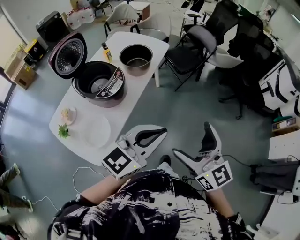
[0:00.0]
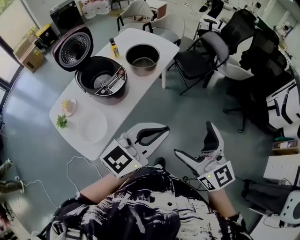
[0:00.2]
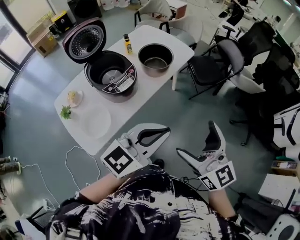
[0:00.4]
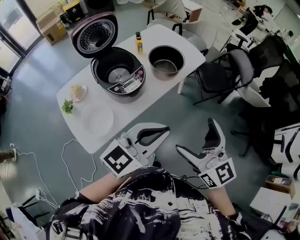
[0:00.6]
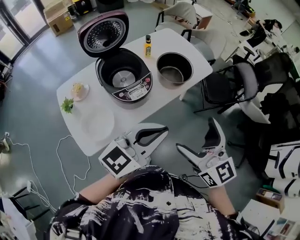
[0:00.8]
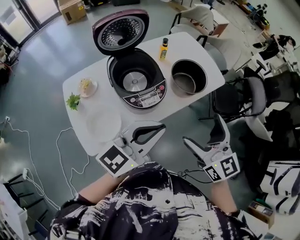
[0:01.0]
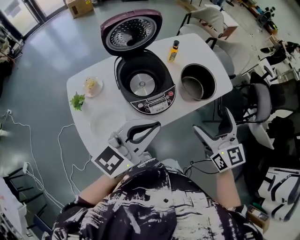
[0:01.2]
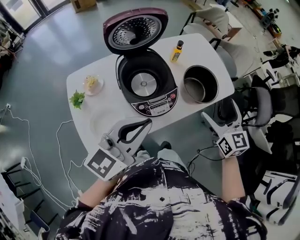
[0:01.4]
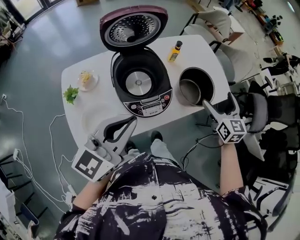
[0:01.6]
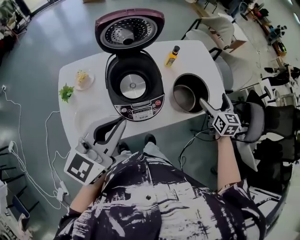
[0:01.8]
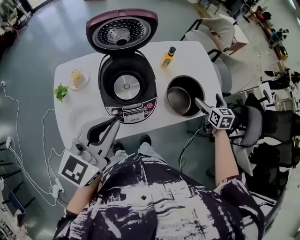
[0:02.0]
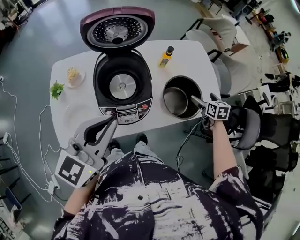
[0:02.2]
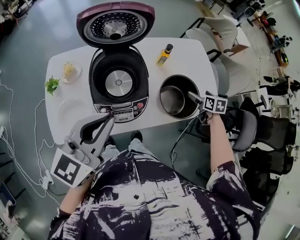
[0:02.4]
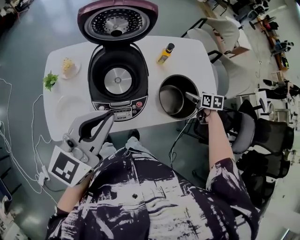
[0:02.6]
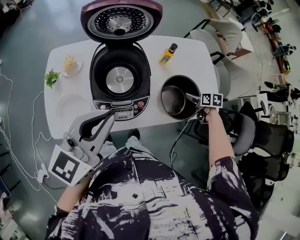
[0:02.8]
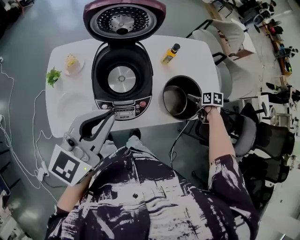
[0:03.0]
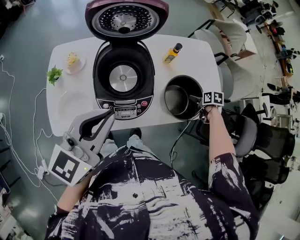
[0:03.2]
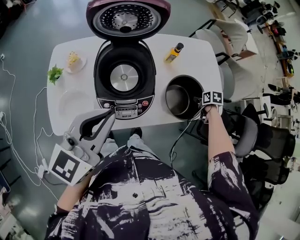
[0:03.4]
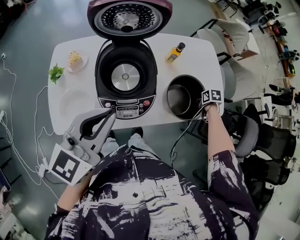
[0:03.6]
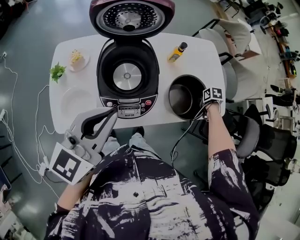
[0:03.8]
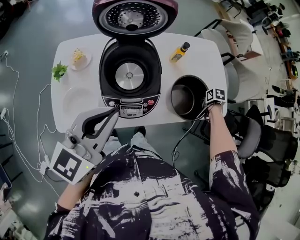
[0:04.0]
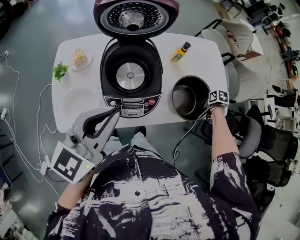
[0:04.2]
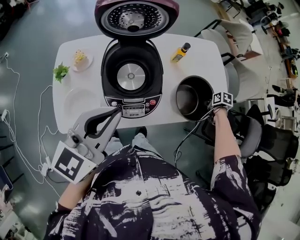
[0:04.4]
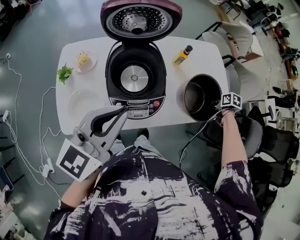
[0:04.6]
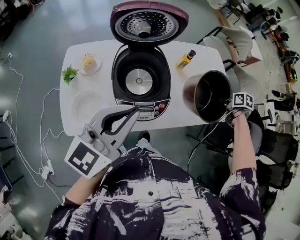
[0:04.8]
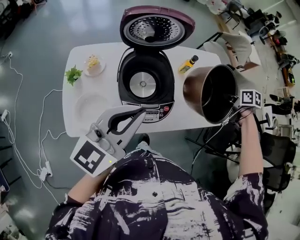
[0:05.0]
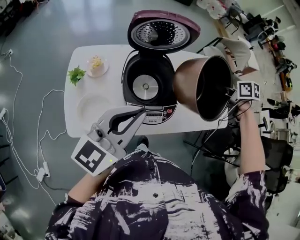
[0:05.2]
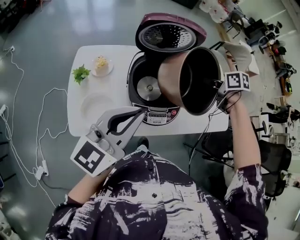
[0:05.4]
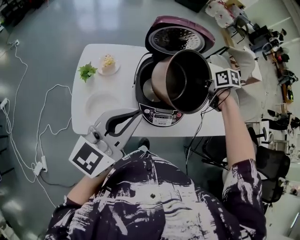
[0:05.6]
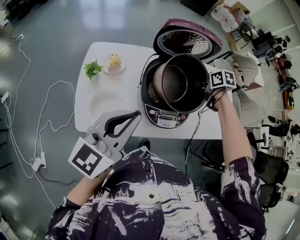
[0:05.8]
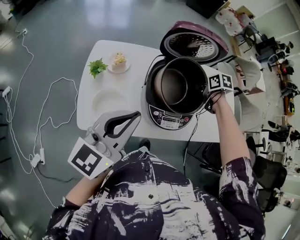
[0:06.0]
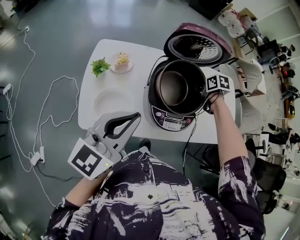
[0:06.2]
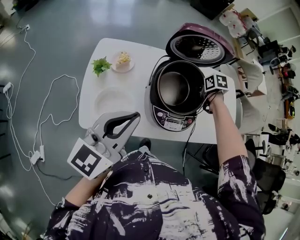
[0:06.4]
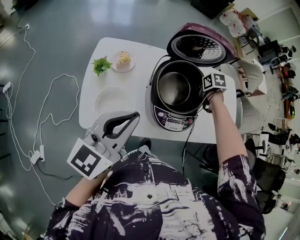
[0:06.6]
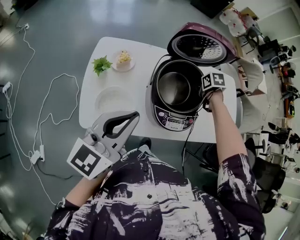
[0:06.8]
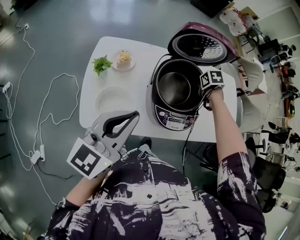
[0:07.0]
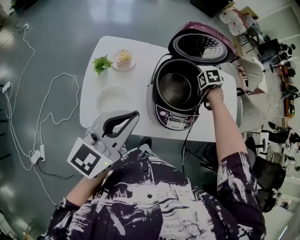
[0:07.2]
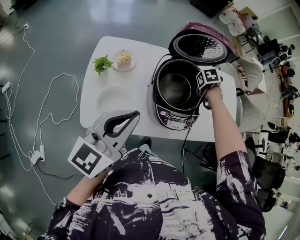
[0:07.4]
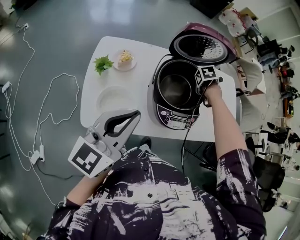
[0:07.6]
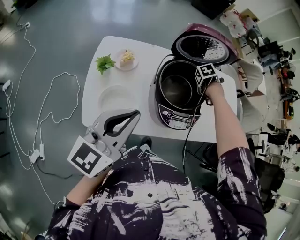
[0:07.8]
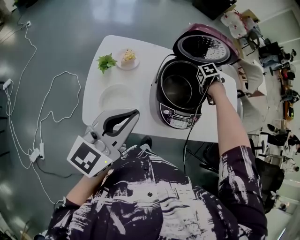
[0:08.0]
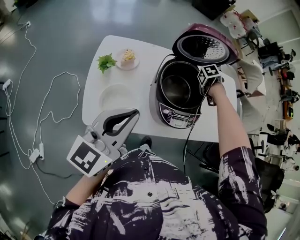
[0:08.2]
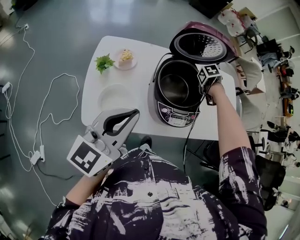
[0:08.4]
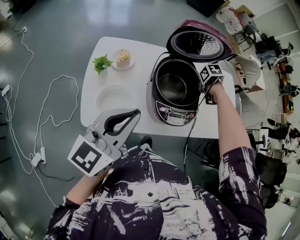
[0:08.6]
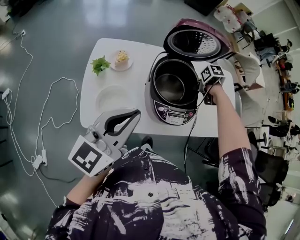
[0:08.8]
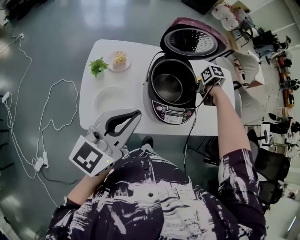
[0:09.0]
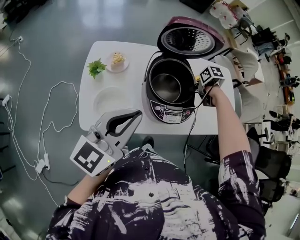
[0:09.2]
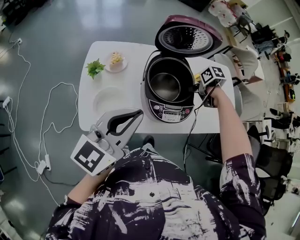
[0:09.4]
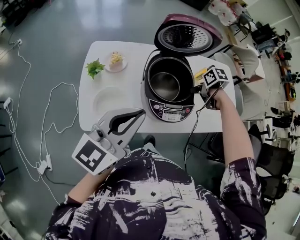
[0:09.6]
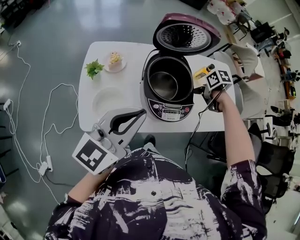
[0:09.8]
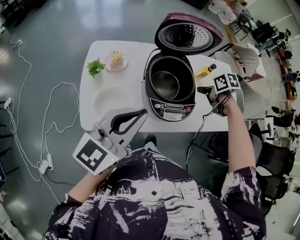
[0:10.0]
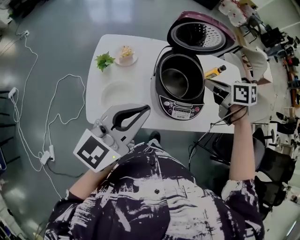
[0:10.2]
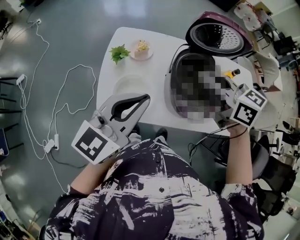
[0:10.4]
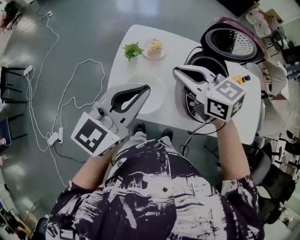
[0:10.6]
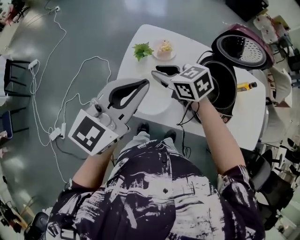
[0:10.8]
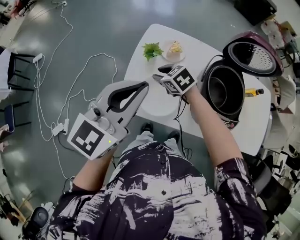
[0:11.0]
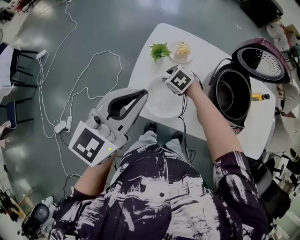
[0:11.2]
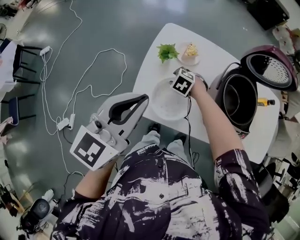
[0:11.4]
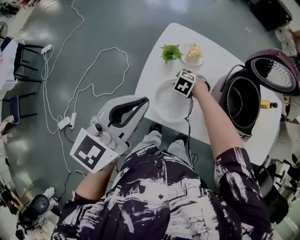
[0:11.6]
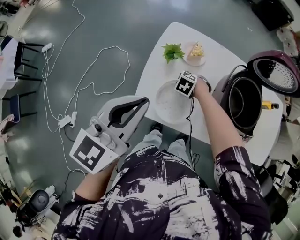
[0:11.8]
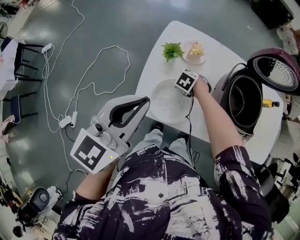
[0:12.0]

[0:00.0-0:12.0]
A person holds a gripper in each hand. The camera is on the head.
0:00.0 to 0:01.6: The left gripper shifts by roughly 35 cm, and swivels approximately 60 degrees. Meanwhile the right gripper moves roughly 60 cm, and swivels some 30 degrees.
0:01.6 to 0:03.0: The right gripper shifts approximately 30 cm downward and forward, and tilts its fingers about 50 degrees downward, while the left gripper goes some 5 cm forward.
0:03.0 to 0:04.4: The right gripper ends up about 5 cm from where it was, and closes its fingers.
0:04.4 to 0:06.0: The left gripper ends up approximately 15 cm from where it was. Meanwhile the right gripper ends up some 40 cm from where it was, and changes its angle by some 30 degrees.
0:06.0 to 0:07.6: The right gripper swivels some 30 degrees.
0:07.6 to 0:09.0: The right gripper changes place by approximately 5 cm, and turns by some 30 degrees.
0:09.0 to 0:10.4: The right gripper shifts about 25 cm upward, and points its fingers approximately 60 degrees further upward.
0:10.4 to 0:12.0: The right gripper is displaced downward by approximately 40 cm, and tips its fingers downward by approximately 60 degrees. Meanwhile the left gripper ends up roughly 20 cm from where it was.

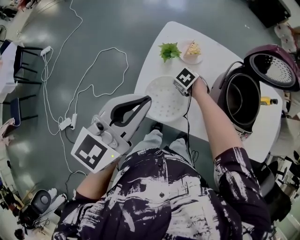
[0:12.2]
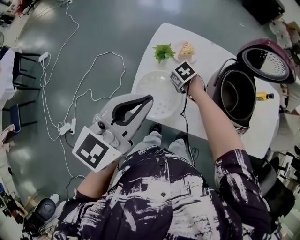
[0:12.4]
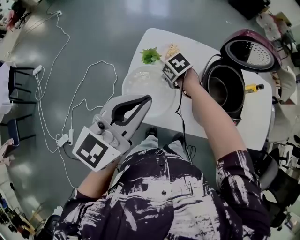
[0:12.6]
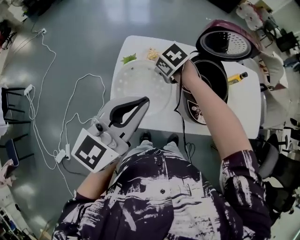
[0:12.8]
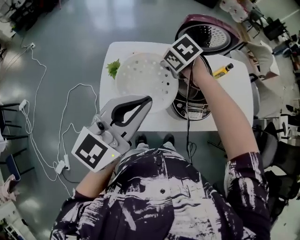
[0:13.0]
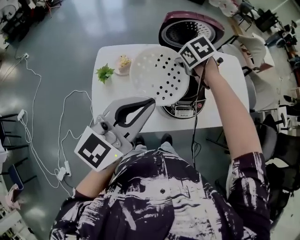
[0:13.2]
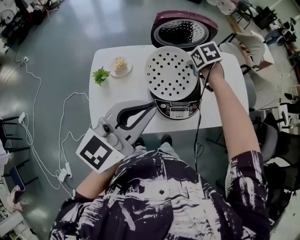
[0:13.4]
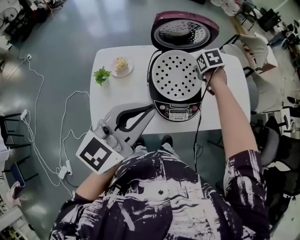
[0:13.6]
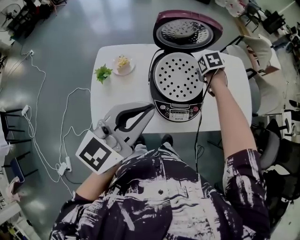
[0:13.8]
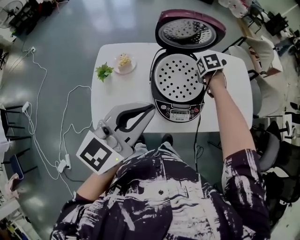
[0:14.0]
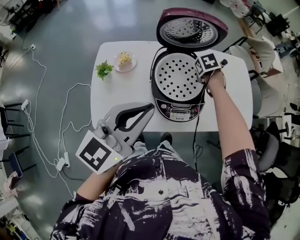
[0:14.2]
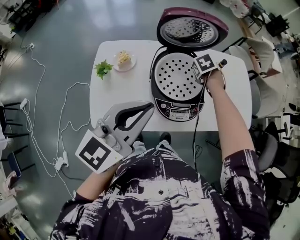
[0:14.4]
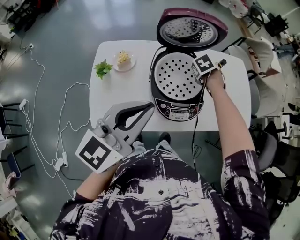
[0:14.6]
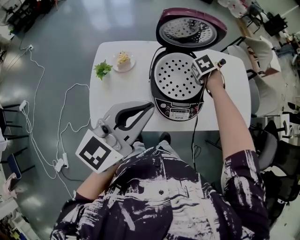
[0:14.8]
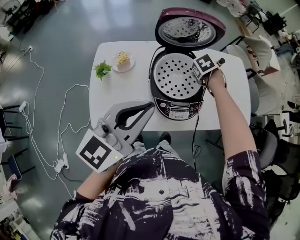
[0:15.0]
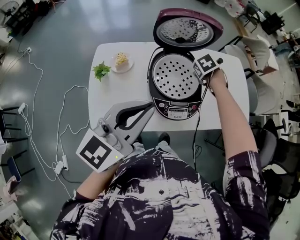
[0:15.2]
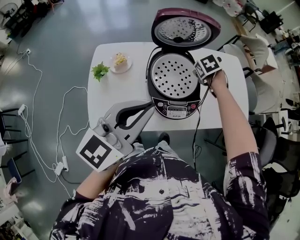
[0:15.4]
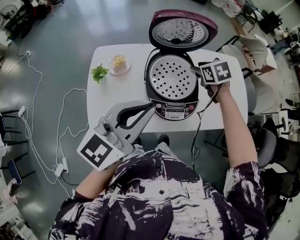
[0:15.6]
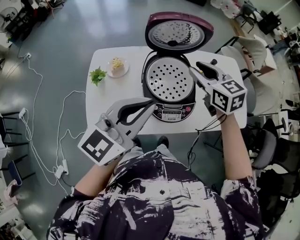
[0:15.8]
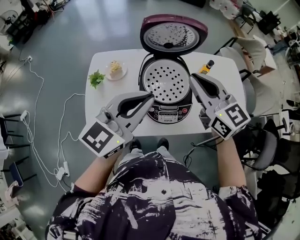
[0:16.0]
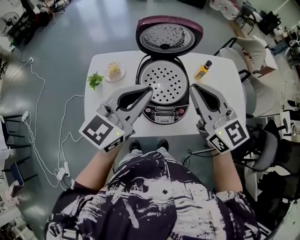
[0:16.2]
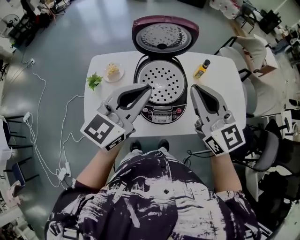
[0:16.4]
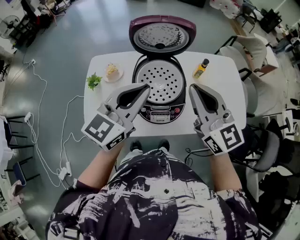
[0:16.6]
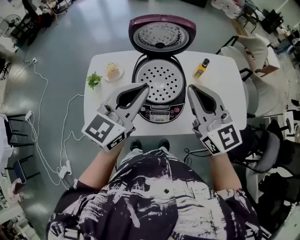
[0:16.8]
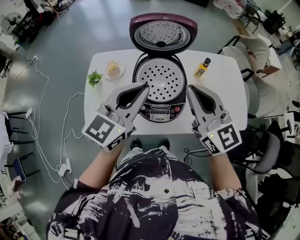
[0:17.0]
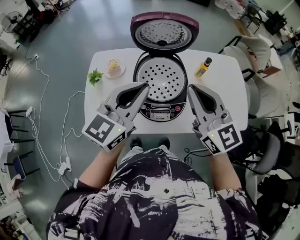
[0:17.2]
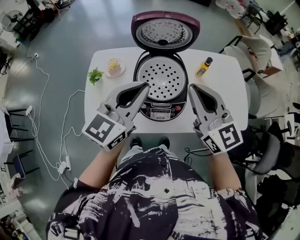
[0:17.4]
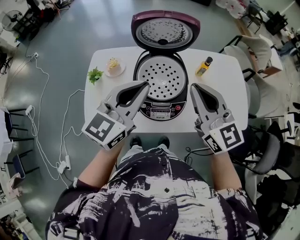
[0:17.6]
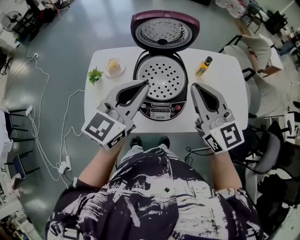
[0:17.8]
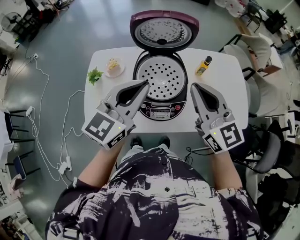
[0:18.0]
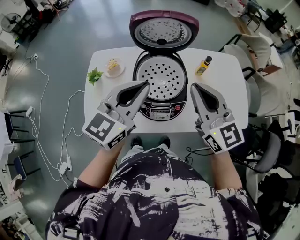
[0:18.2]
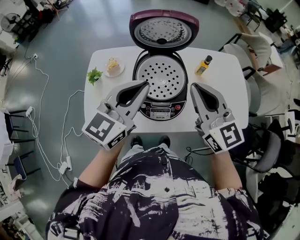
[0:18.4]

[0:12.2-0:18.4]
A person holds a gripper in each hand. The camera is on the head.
0:12.2 to 0:13.8: The right gripper ends up roughly 50 cm from where it was, and rolls clockwise, seen from behind, by roughly 50 degrees, while the left gripper changes place by some 30 cm, and turns by some 30 degrees.
0:13.8 to 0:15.4: The grippers stay close to where they were, moving slightly.
0:15.4 to 0:16.8: The right gripper is displaced upward and backward by some 30 cm, and points its fingers roughly 70 degrees further upward, while the left gripper shifts roughly 10 cm to the right and forward.
0:16.8 to 0:18.4: The grippers make only small movements.

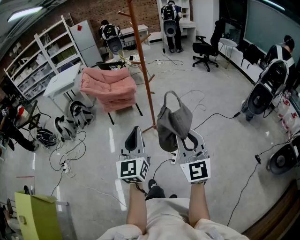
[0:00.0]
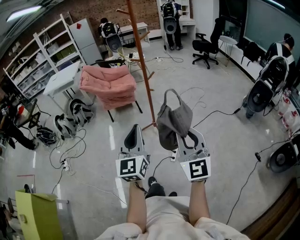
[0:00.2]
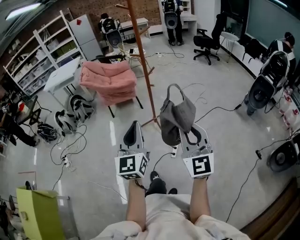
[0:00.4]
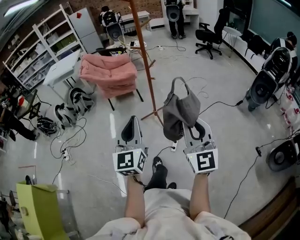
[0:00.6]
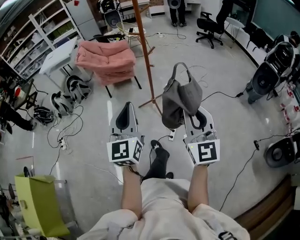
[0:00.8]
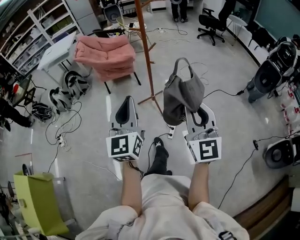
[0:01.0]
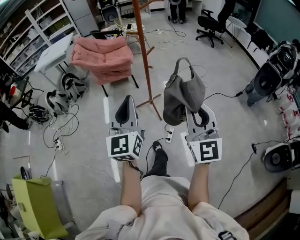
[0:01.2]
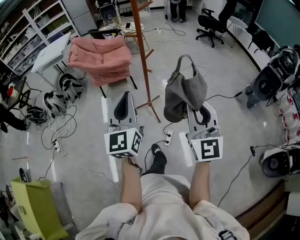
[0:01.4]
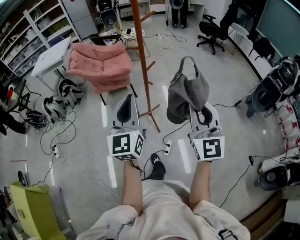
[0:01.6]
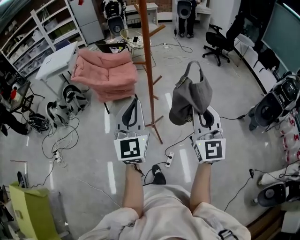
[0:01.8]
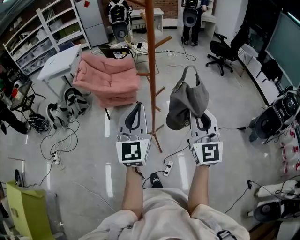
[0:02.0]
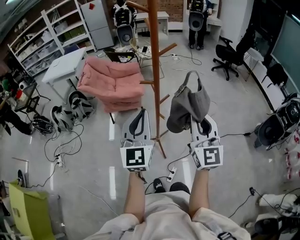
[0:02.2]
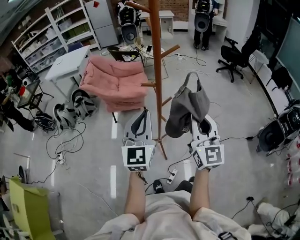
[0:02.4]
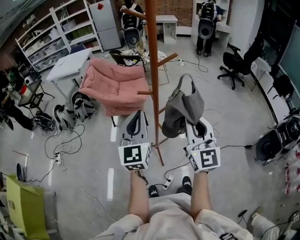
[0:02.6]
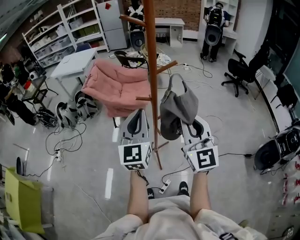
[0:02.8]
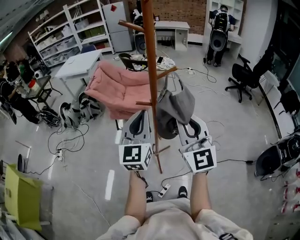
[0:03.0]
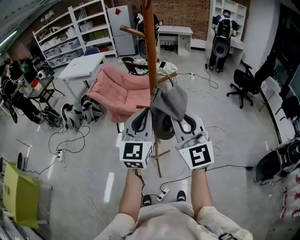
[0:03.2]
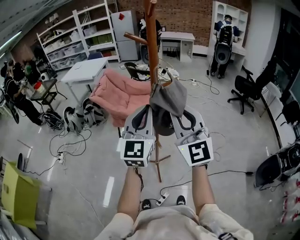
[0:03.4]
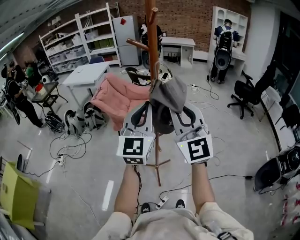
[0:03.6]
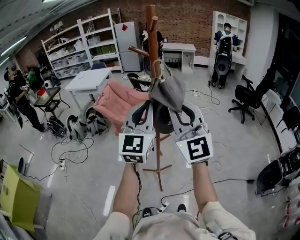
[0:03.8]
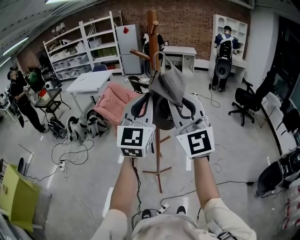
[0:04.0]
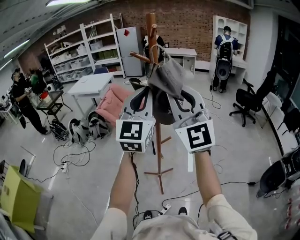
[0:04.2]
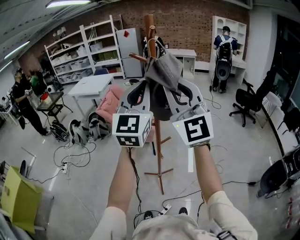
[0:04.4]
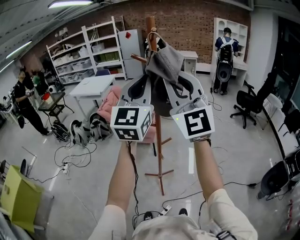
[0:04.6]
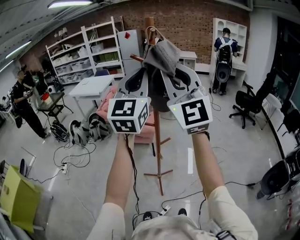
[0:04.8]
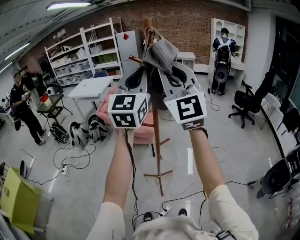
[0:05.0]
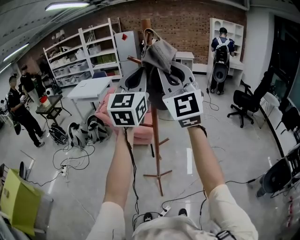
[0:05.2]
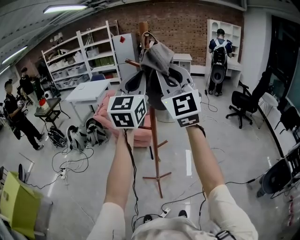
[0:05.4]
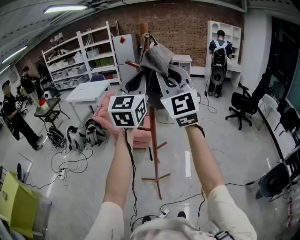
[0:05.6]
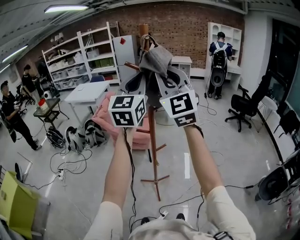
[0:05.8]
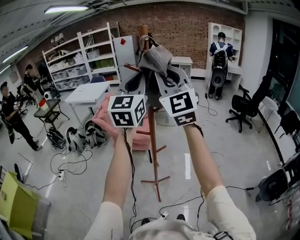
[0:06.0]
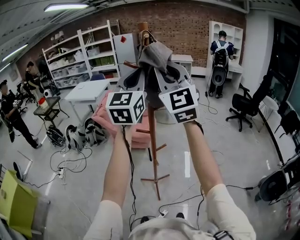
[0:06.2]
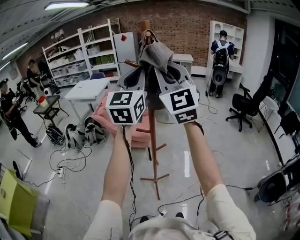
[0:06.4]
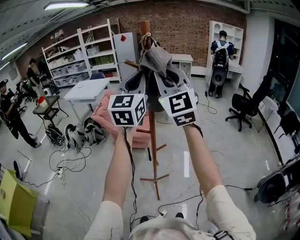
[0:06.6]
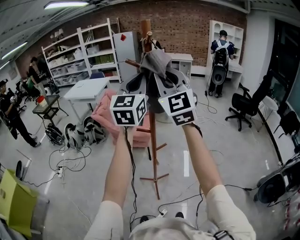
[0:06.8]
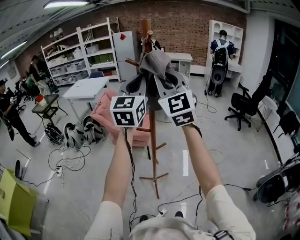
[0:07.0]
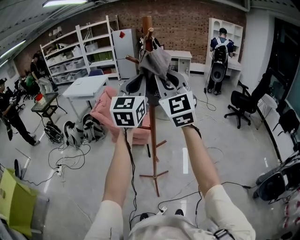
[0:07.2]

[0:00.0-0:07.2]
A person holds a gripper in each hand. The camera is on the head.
0:00.0 to 0:01.4: The right gripper goes approximately 15 cm forward and to the right. Meanwhile the left gripper moves forward, some 15 cm.
0:01.4 to 0:02.8: The two grippers go roughly 25 cm forward.
0:02.8 to 0:04.4: The two grippers go roughly 20 cm upward. The right gripper turns by about 30 degrees.
0:04.4 to 0:05.8: The two grippers go some 5 cm forward.
0:05.8 to 0:07.2: The grippers stay close to where they were, moving slightly.
